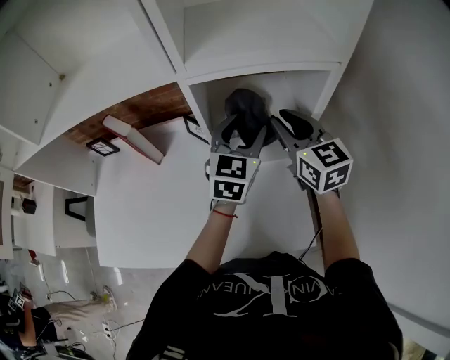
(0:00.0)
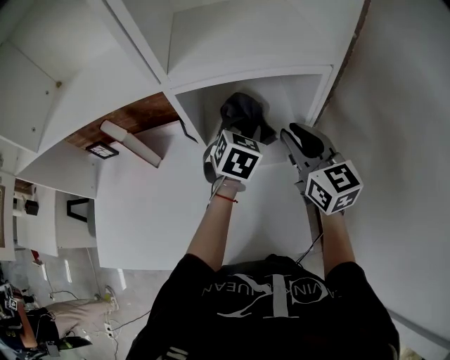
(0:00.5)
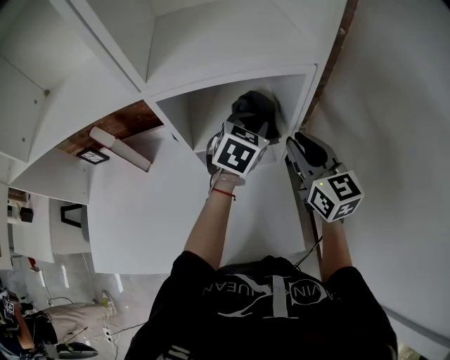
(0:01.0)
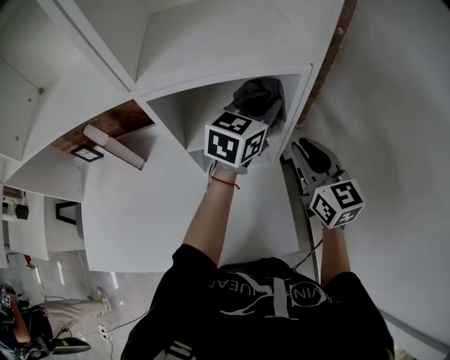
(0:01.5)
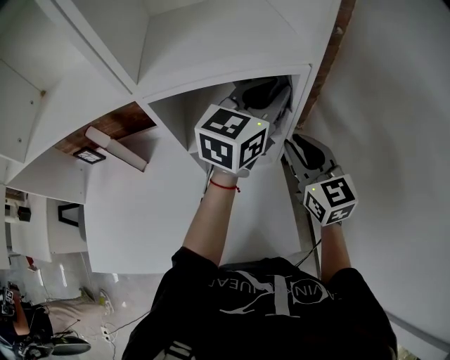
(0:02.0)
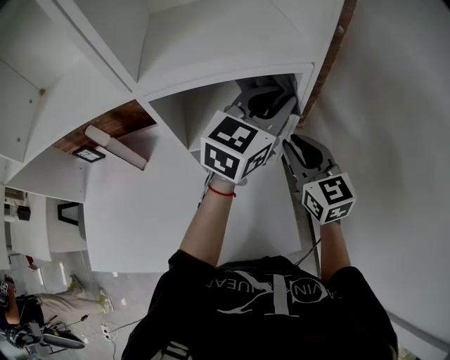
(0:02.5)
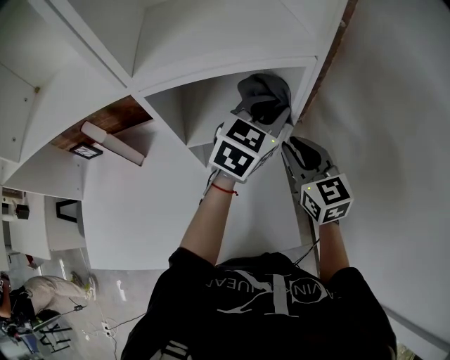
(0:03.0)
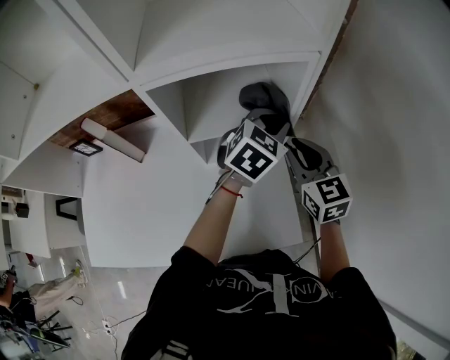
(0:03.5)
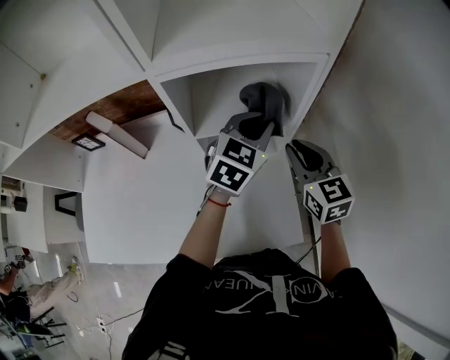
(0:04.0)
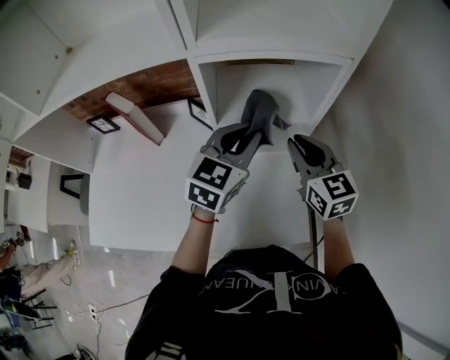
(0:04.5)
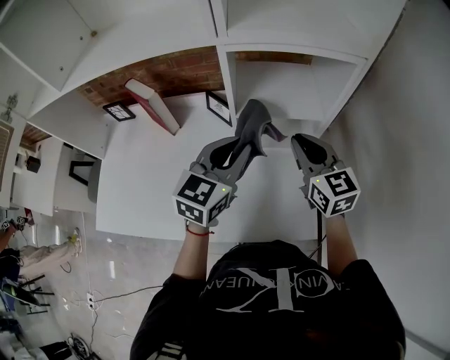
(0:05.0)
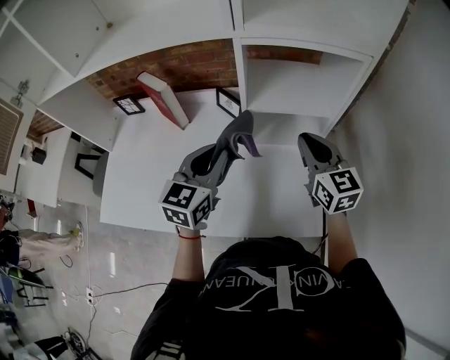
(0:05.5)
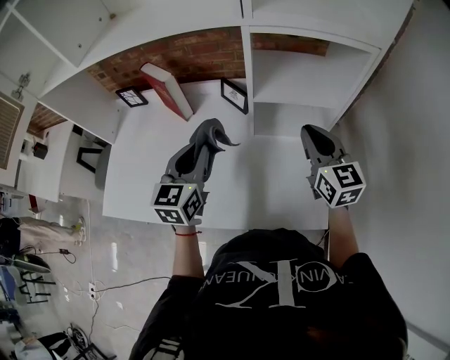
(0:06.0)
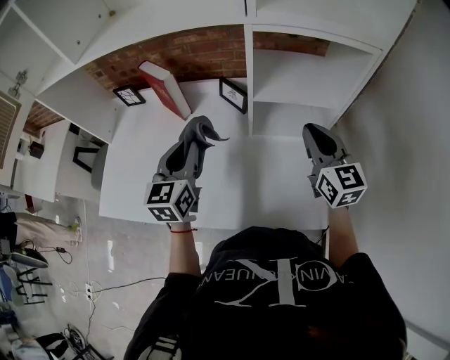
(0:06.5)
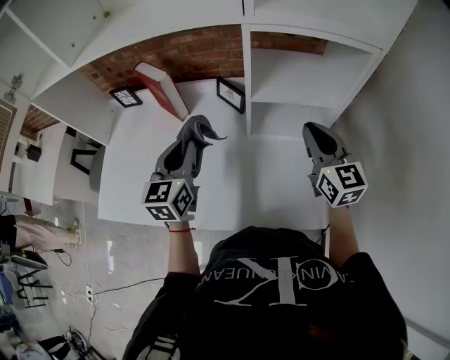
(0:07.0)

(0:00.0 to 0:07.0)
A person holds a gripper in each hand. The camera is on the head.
0:00.0 - 0:02.0: The left gripper travels to the right and upward by about 15 cm, swivels roughly 30 degrees, and closes its fingers. The right gripper shifts about 10 cm to the right.
0:02.0 - 0:03.5: The left gripper shifts approximately 15 cm downward, and tilts its fingers roughly 30 degrees downward, while the right gripper travels downward by roughly 5 cm.
0:03.5 - 0:05.0: The right gripper moves to the left, approximately 10 cm; the left gripper travels to the left and backward by about 25 cm, and turns by approximately 30 degrees.
0:05.0 - 0:07.0: The left gripper travels to the left by about 20 cm, and turns by roughly 30 degrees.

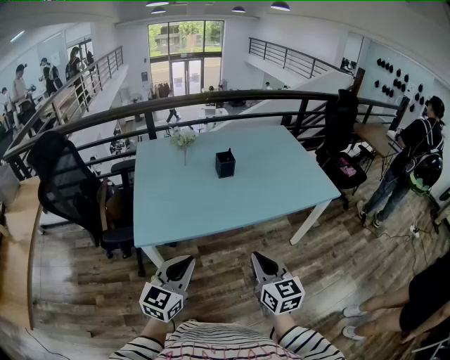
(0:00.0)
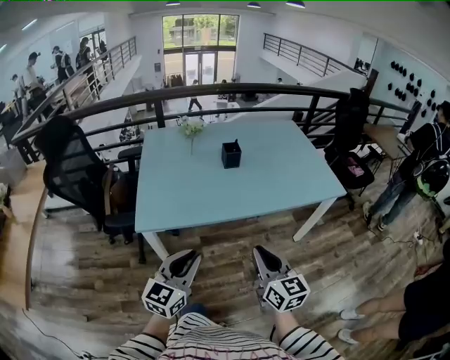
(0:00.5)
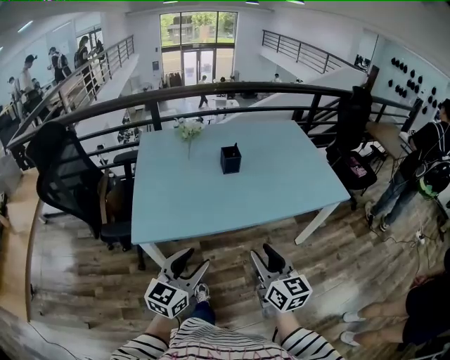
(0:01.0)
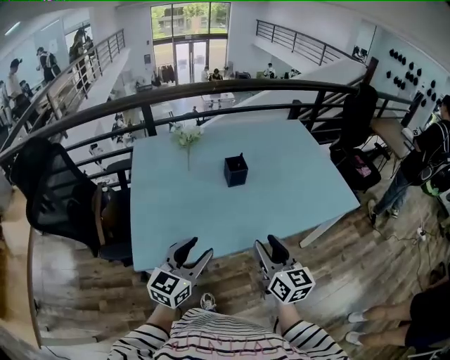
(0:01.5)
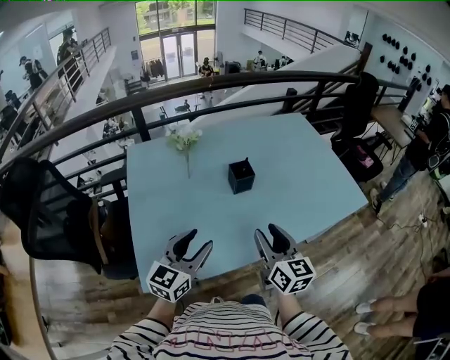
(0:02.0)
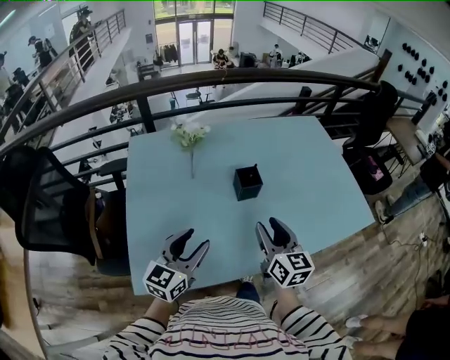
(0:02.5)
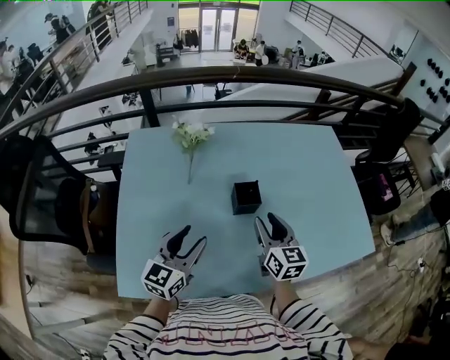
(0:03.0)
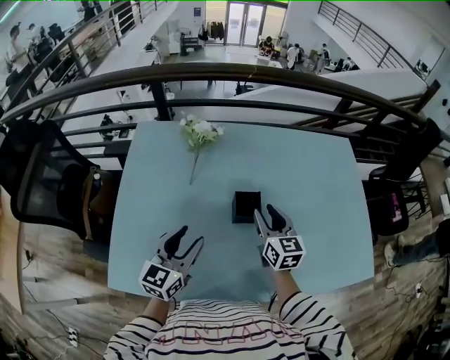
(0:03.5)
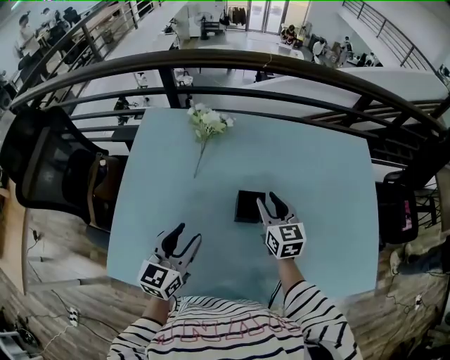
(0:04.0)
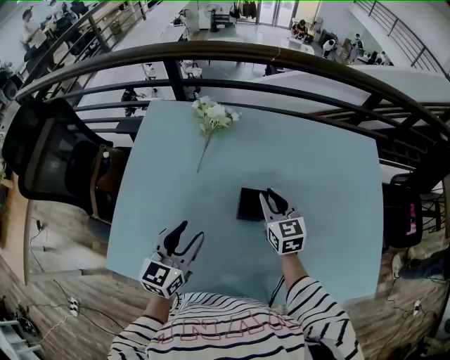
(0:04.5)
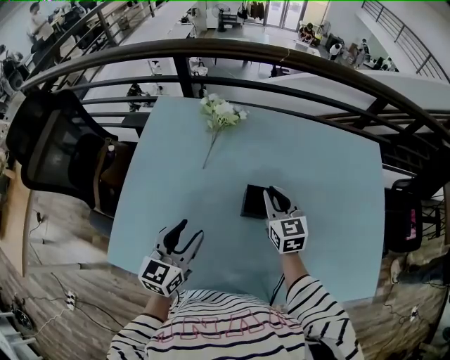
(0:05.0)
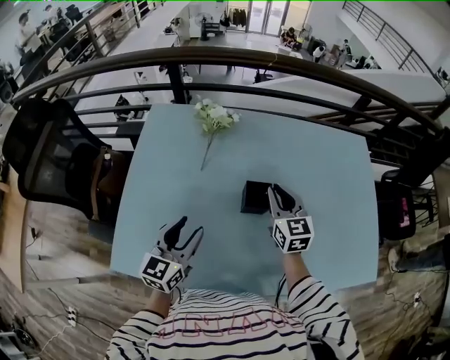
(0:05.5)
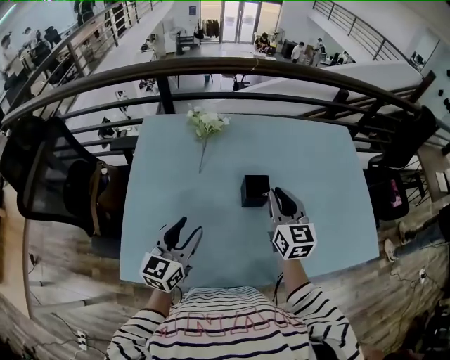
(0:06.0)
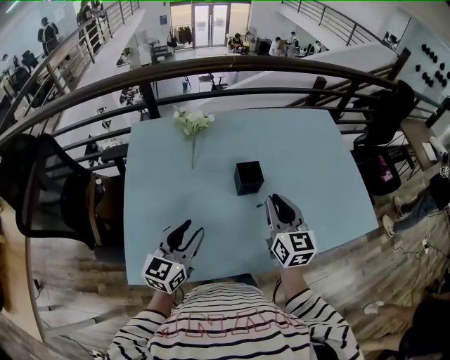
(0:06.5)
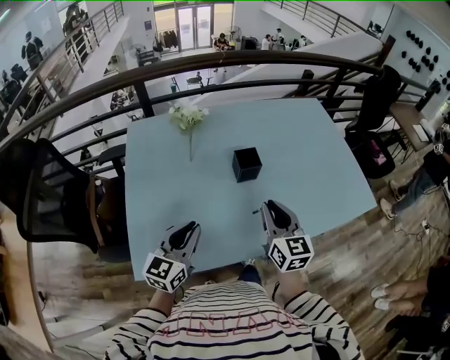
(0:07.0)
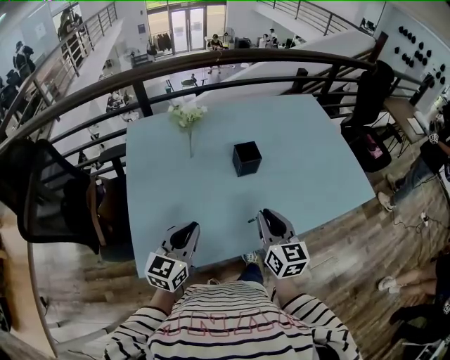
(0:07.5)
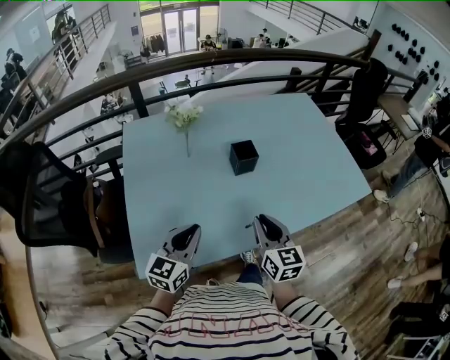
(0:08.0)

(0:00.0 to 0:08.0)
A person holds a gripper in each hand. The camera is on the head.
0:00.0 - 0:02.0: Both grippers move forward, approximately 30 cm. The left gripper opens up. The right gripper opens up.
0:02.0 - 0:04.0: The left gripper ends up approximately 20 cm from where it was, and turns by approximately 30 degrees, while the right gripper ends up about 40 cm from where it was, and rotates roughly 30 degrees.
0:04.0 - 0:06.0: The right gripper goes approximately 15 cm backward and upward, and closes. Meanwhile the left gripper heads to the left and backward, covering roughly 5 cm.
0:06.0 - 0:08.0: The right gripper heads backward, covering about 25 cm, while the left gripper moves backward, roughly 15 cm, and closes.

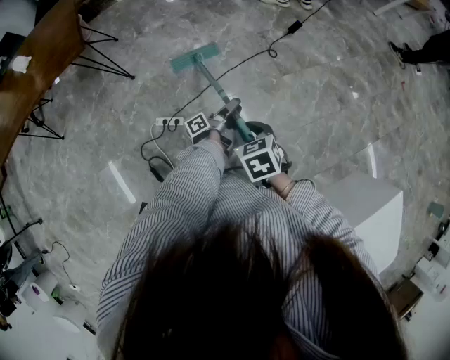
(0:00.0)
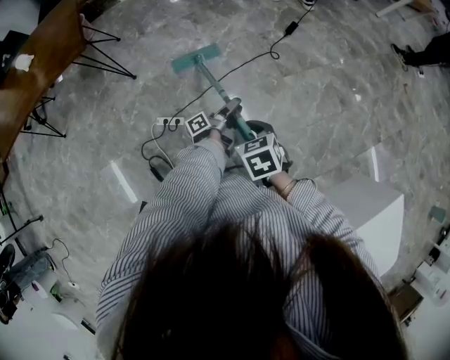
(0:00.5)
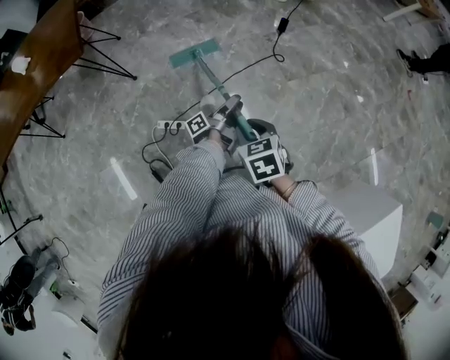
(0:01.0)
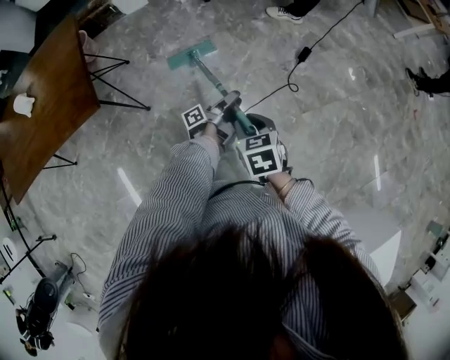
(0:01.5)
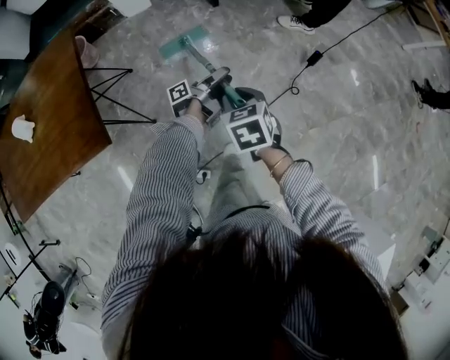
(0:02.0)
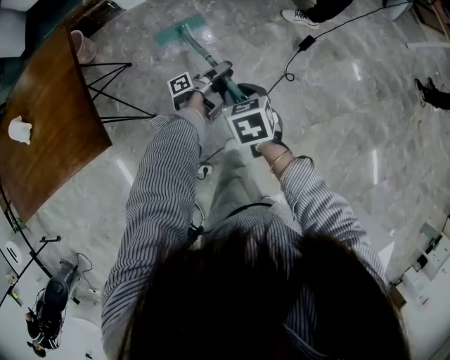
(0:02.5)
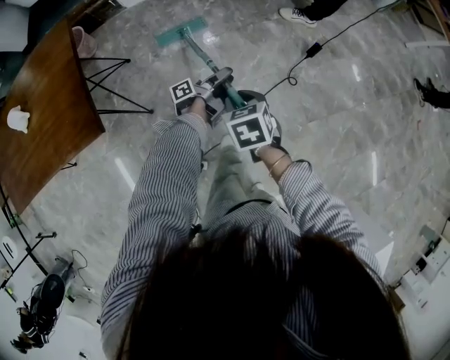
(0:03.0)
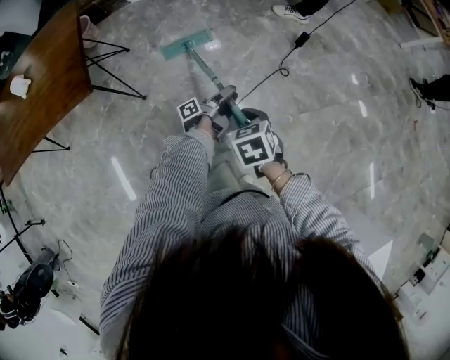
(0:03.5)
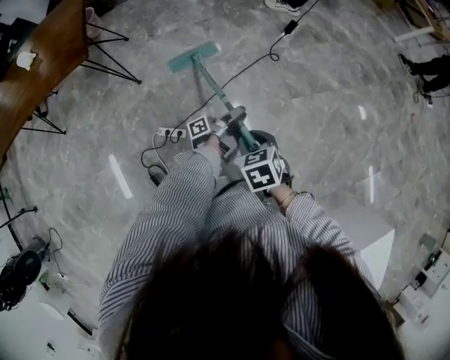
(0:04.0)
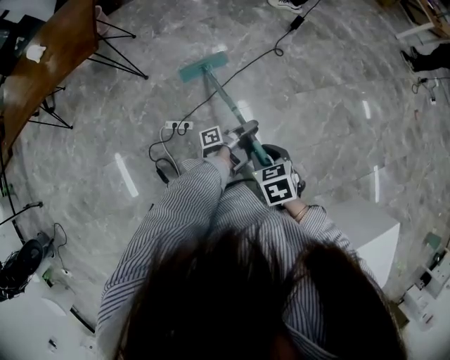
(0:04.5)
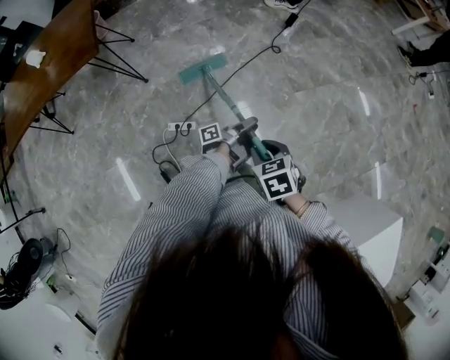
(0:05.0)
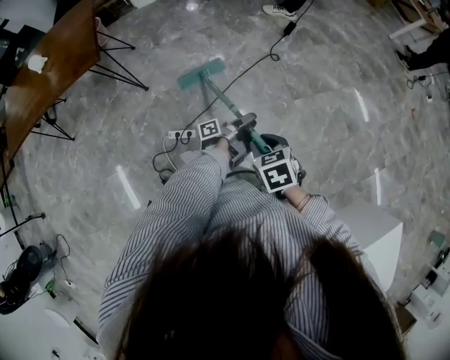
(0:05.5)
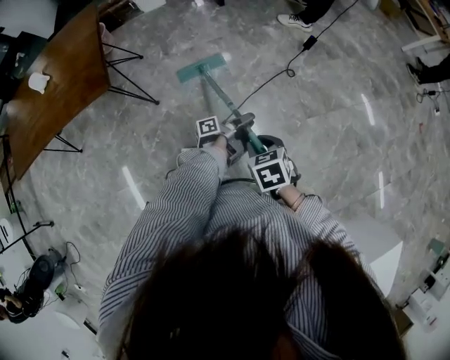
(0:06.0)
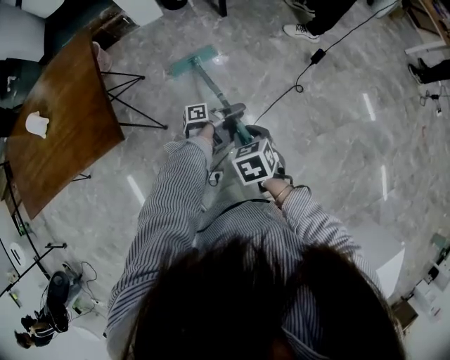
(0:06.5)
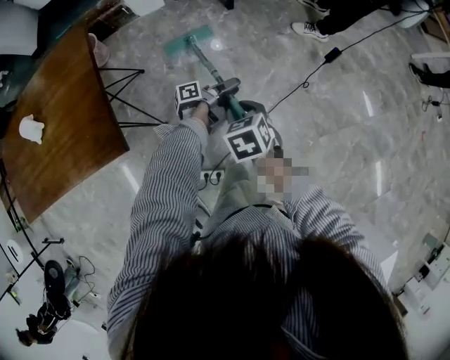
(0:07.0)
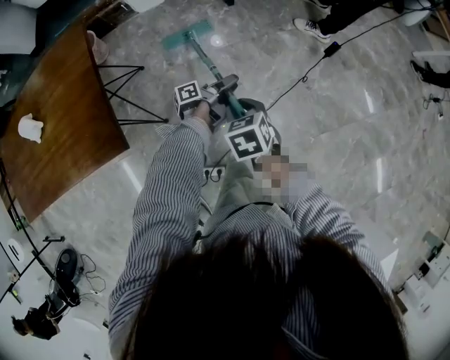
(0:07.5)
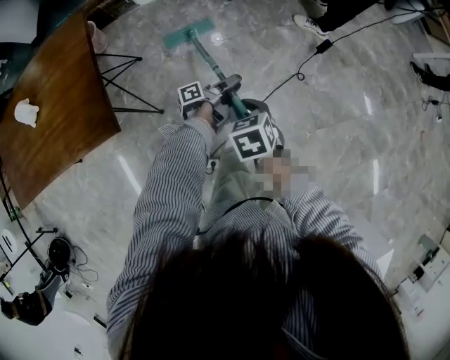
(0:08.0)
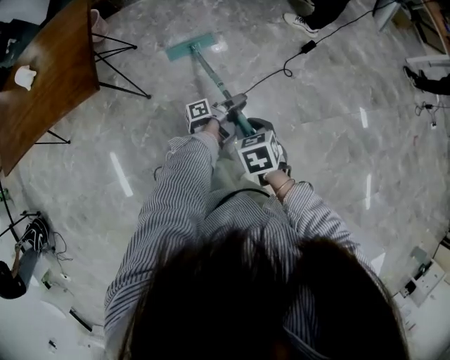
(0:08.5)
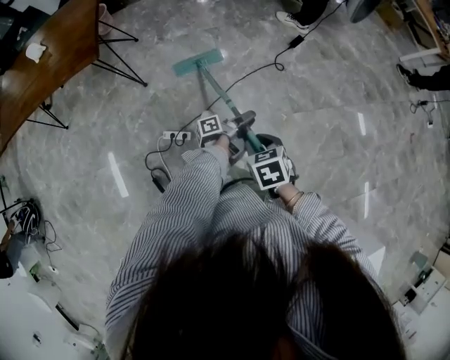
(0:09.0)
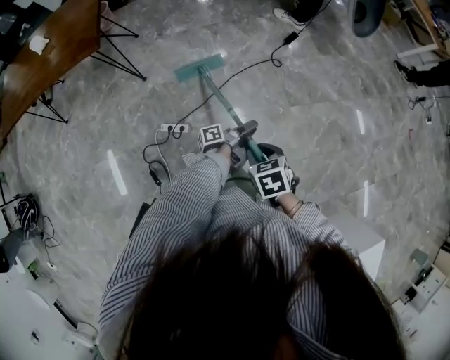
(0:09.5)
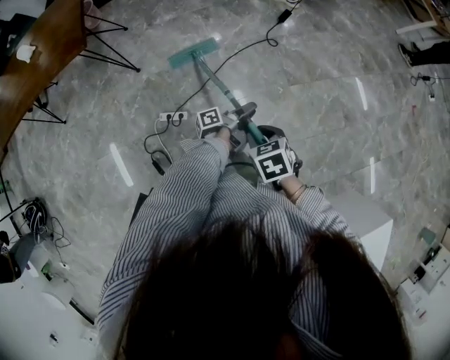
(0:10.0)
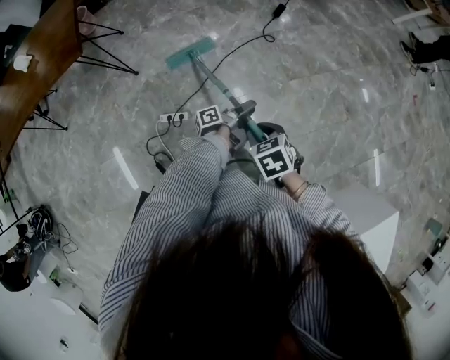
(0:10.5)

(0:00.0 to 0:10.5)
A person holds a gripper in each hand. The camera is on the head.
0:00.0 - 0:02.0: The right gripper ends up some 60 cm from where it was.
0:02.0 - 0:04.0: The right gripper shifts by some 50 cm.
0:04.0 - 0:06.5: The right gripper ends up approximately 40 cm from where it was.
0:06.5 - 0:08.5: The right gripper moves about 15 cm.
0:08.5 - 0:10.5: The right gripper ends up about 30 cm from where it was.

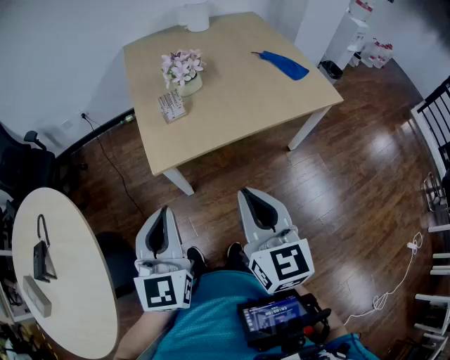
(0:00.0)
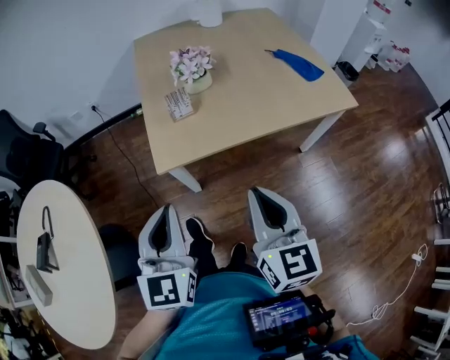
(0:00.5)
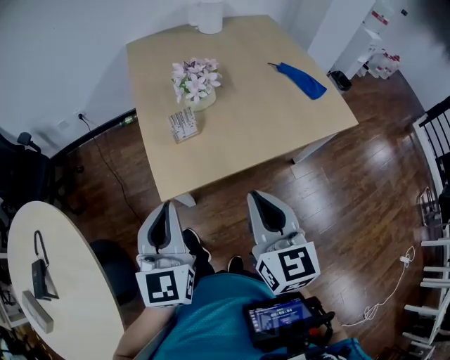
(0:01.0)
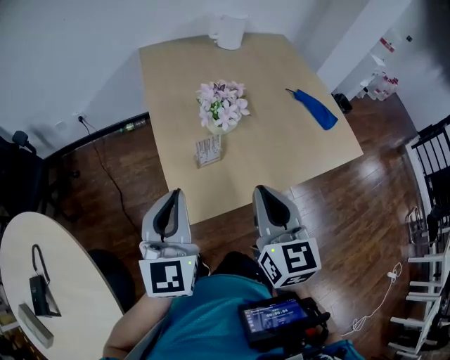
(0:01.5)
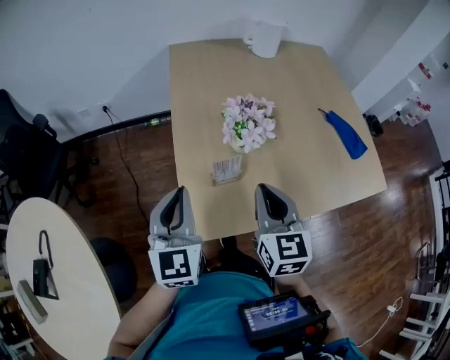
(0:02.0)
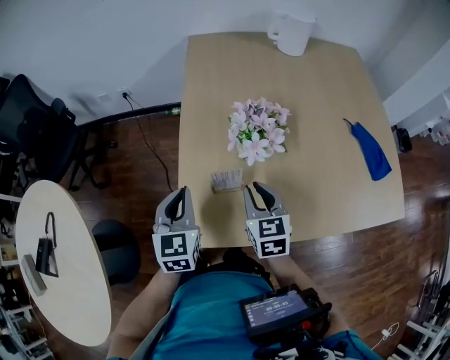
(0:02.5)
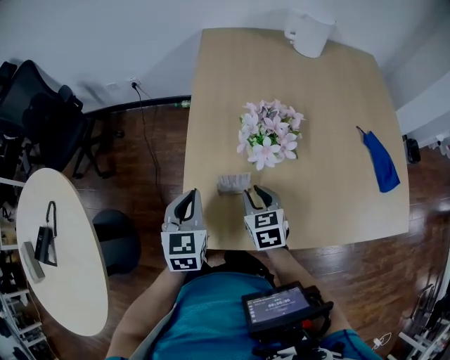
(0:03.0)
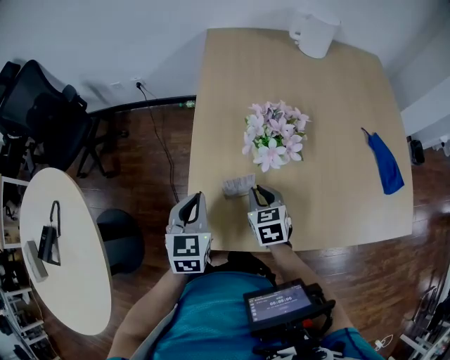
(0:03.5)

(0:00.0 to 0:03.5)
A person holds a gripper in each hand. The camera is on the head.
0:00.0 - 0:02.0: Both grippers travel together forward, some 30 cm.
0:02.0 - 0:03.5: The left gripper goes roughly 15 cm downward, and swivels approximately 20 degrees; the right gripper goes roughly 20 cm downward, and changes its angle by approximately 30 degrees.
